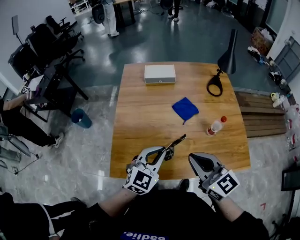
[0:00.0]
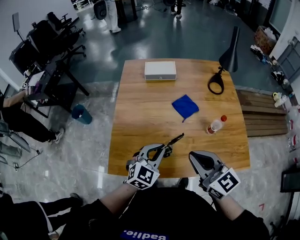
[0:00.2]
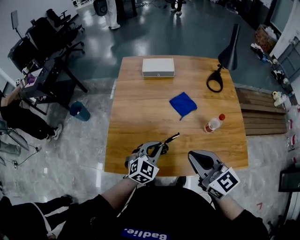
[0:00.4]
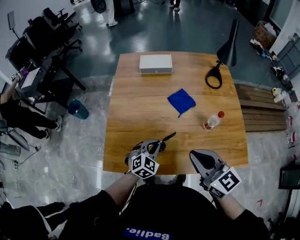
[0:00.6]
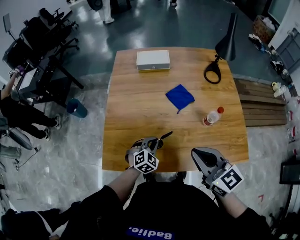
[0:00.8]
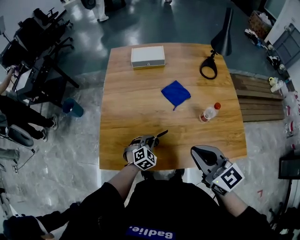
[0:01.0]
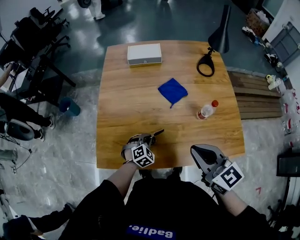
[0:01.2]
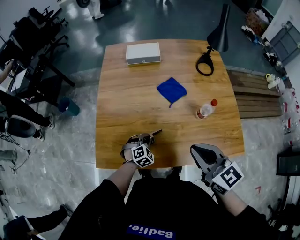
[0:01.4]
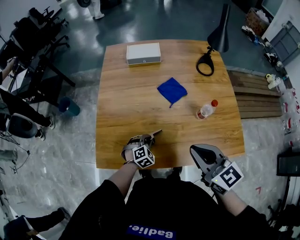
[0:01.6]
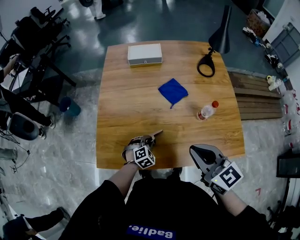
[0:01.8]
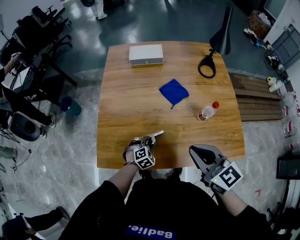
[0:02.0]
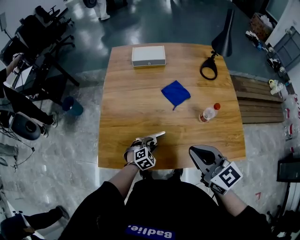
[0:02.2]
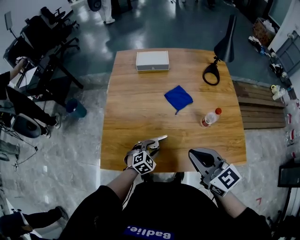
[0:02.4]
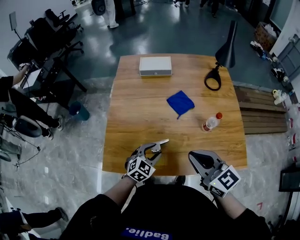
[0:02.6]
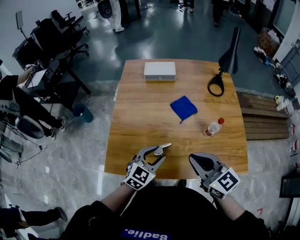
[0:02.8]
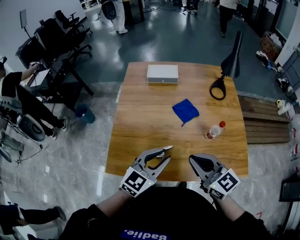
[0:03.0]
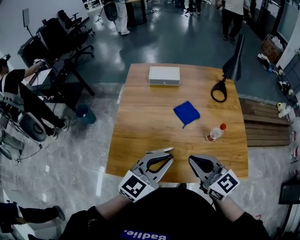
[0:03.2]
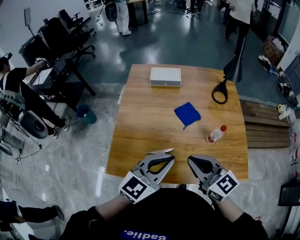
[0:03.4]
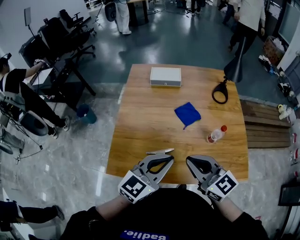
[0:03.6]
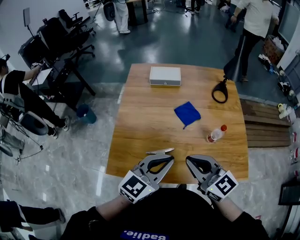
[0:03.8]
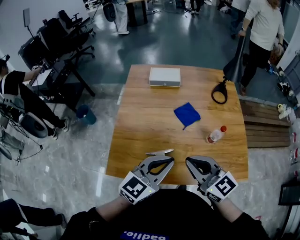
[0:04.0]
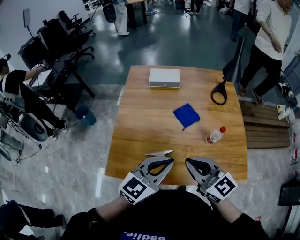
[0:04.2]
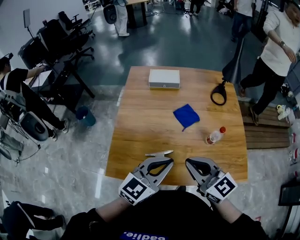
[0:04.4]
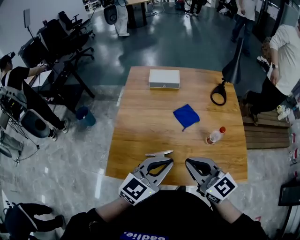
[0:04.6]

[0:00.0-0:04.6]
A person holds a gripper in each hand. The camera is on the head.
0:00.0 to 0:01.6: The right gripper travels to the right by some 5 cm, while the left gripper shifts approximately 30 cm downward, and tips its fingers downward by some 40 degrees.
0:01.6 to 0:03.0: The left gripper shifts some 30 cm upward, tilts its fingers roughly 40 degrees upward, and opens its fingers.
0:03.0 to 0:04.6: The left gripper closes up.

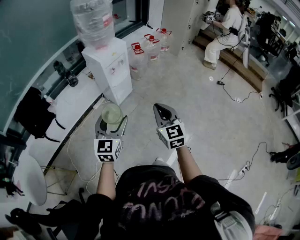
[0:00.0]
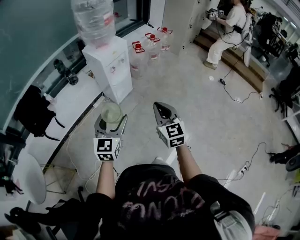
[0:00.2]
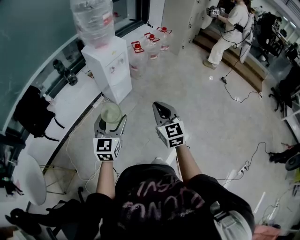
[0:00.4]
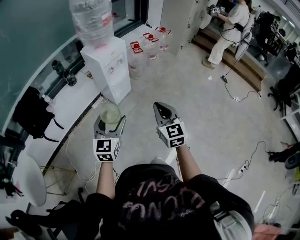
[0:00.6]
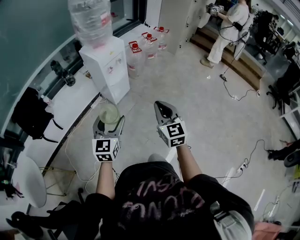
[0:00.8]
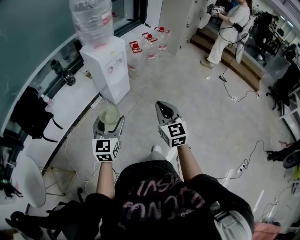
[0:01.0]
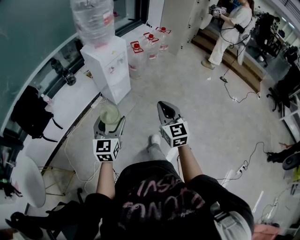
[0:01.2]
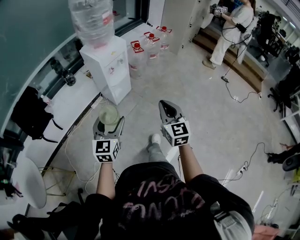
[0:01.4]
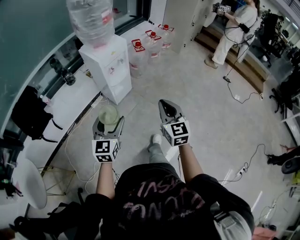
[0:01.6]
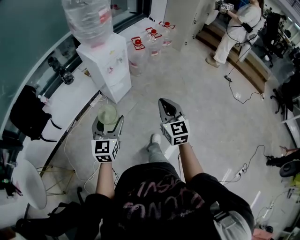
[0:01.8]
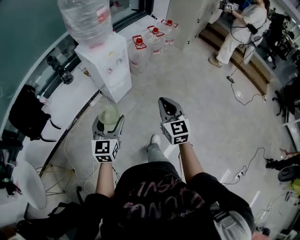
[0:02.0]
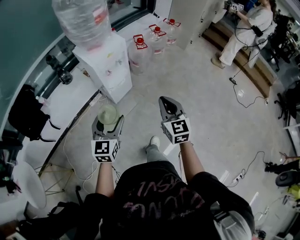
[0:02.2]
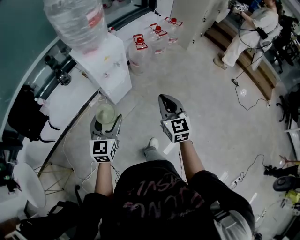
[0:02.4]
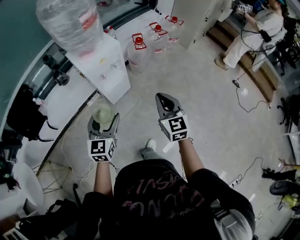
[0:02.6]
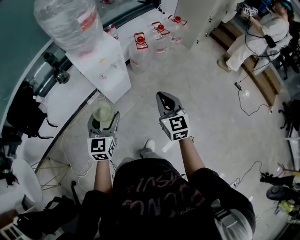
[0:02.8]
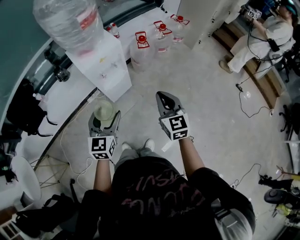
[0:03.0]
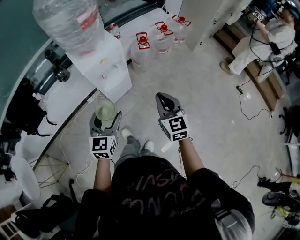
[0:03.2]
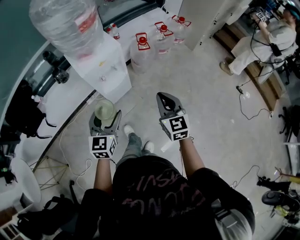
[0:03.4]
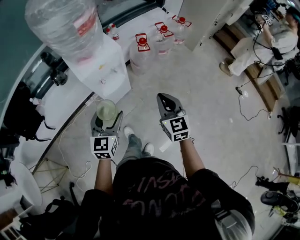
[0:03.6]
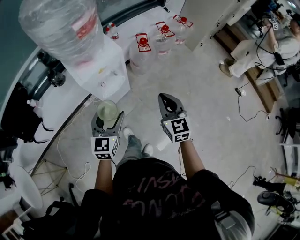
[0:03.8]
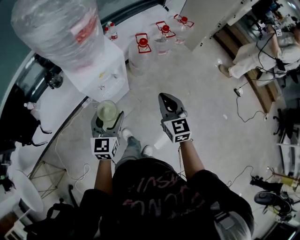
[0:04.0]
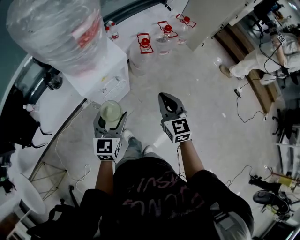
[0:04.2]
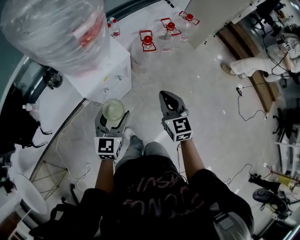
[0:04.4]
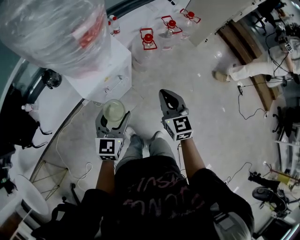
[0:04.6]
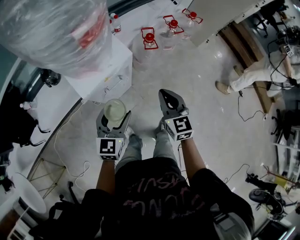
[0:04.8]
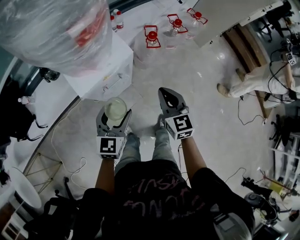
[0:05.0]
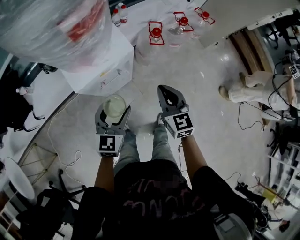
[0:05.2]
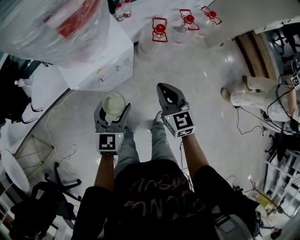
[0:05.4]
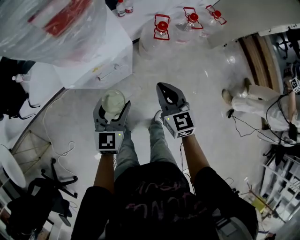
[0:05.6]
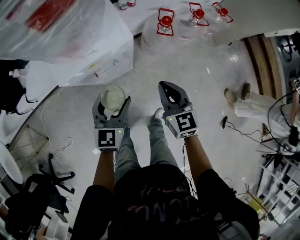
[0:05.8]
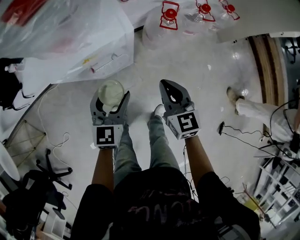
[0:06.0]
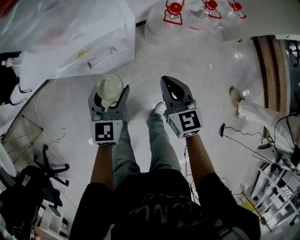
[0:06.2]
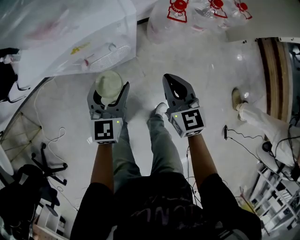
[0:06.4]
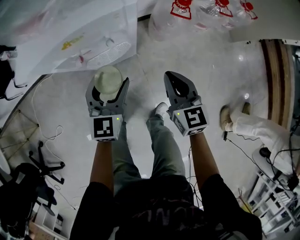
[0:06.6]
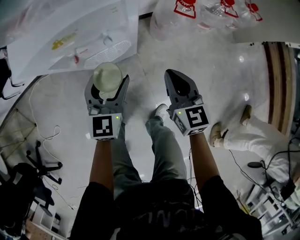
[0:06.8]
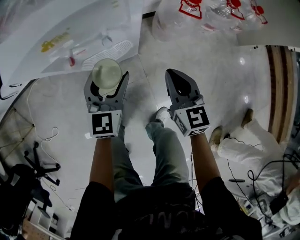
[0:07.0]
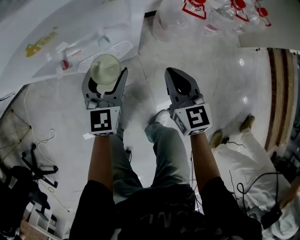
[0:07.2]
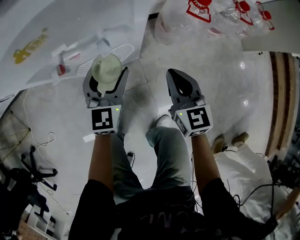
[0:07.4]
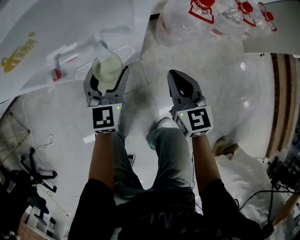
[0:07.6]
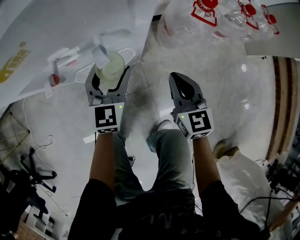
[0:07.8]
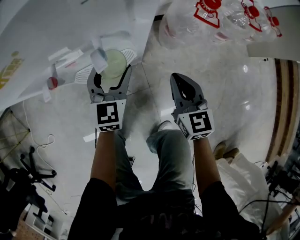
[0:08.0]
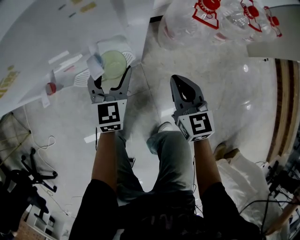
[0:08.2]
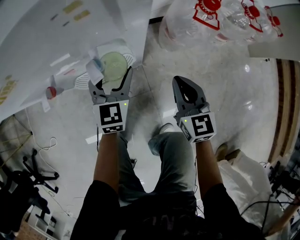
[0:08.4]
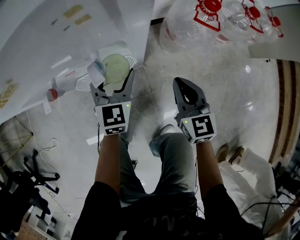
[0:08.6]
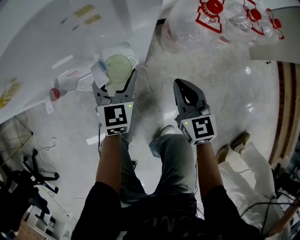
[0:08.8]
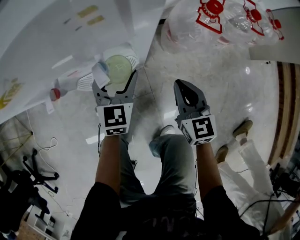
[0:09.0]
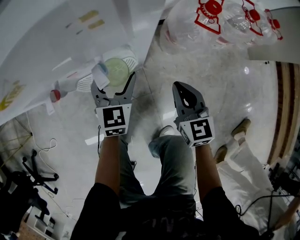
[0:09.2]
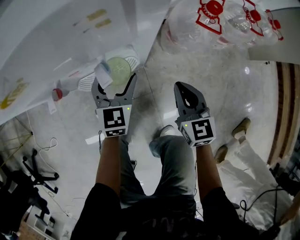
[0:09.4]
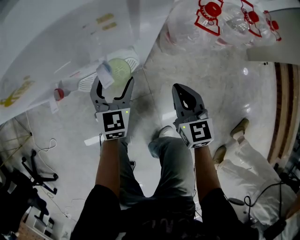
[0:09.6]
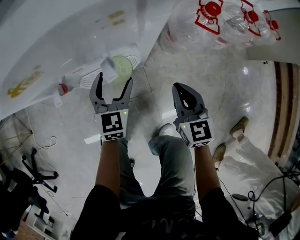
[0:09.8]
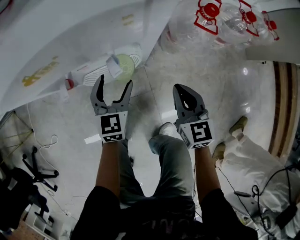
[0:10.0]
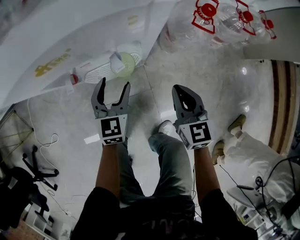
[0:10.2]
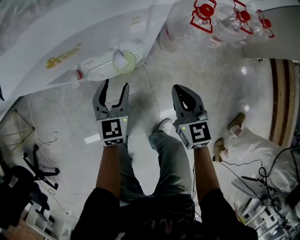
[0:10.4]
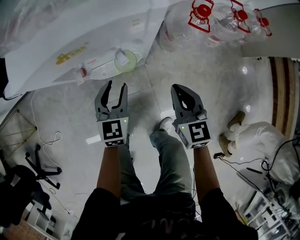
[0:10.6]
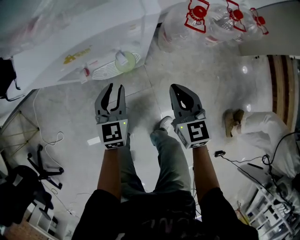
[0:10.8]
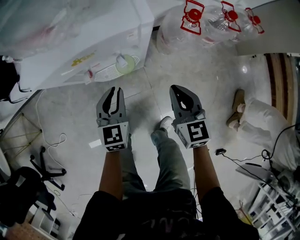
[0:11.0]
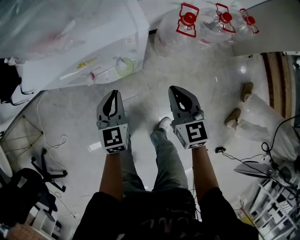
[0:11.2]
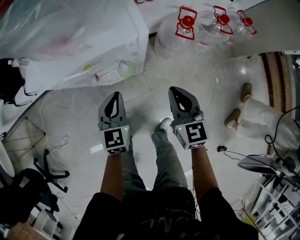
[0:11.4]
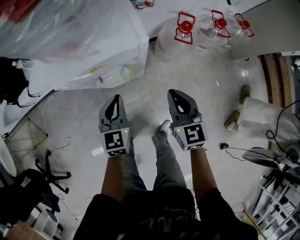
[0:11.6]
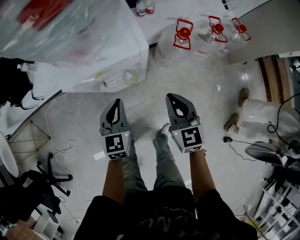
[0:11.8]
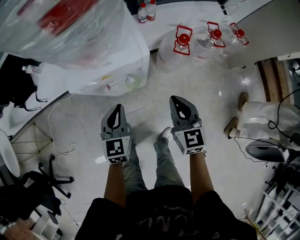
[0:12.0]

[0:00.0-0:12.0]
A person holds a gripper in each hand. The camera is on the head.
0:00.0 to 0:01.6: Both grippers move forward, approximately 10 cm.
0:01.6 to 0:03.0: The right gripper travels forward by about 25 cm. Meanwhile the left gripper travels forward and to the right by approximately 25 cm.
0:03.0 to 0:04.4: The grippers both shift forward by roughly 20 cm.
0:04.4 to 0:06.0: Both grippers move downward and forward, some 15 cm.
0:06.0 to 0:07.6: The right gripper goes some 25 cm downward. Meanwhile the left gripper is displaced downward and forward by some 25 cm.
0:07.6 to 0:09.0: The left gripper moves about 5 cm.
0:09.0 to 0:10.4: The right gripper heads upward, covering about 10 cm. Meanwhile the left gripper travels backward and upward by about 10 cm.
0:10.4 to 0:12.0: The two grippers go roughly 20 cm upward. The left gripper closes its fingers.

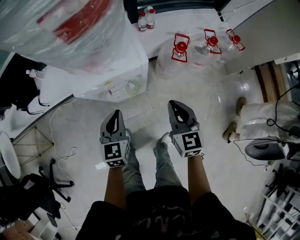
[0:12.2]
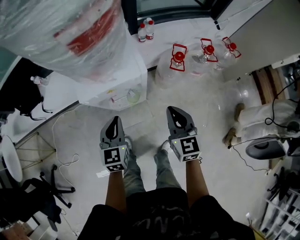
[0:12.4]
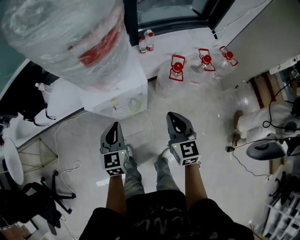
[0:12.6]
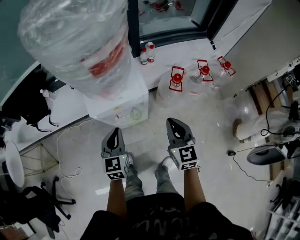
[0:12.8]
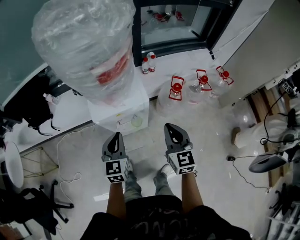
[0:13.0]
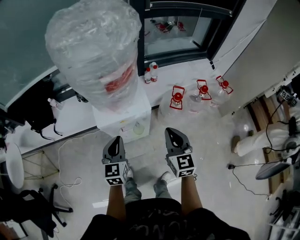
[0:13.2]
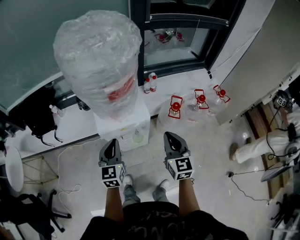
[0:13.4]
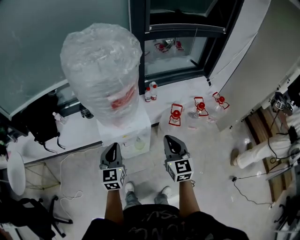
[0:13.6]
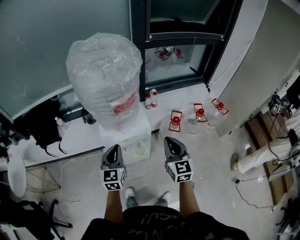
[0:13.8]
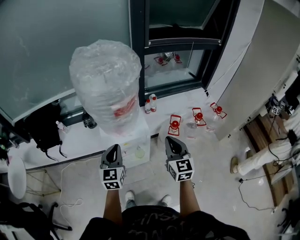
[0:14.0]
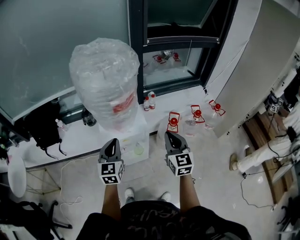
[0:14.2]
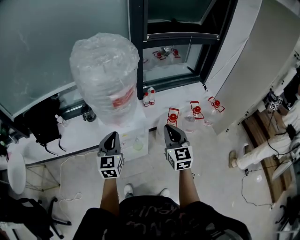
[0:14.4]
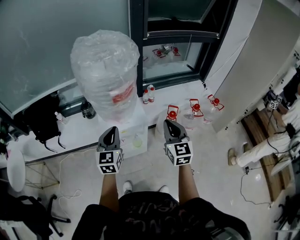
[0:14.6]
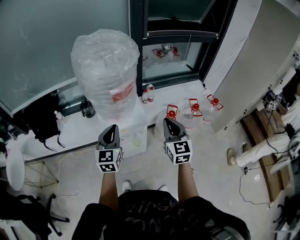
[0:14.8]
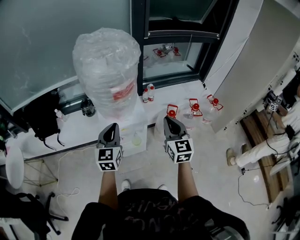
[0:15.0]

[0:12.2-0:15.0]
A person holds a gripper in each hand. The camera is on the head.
0:12.2 to 0:13.6: The grippers both shift upward by roughly 20 cm.
0:13.6 to 0:15.0: Both grippers move upward, about 10 cm.

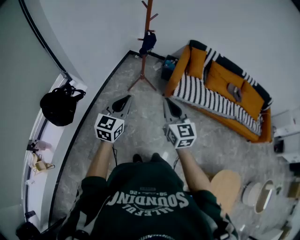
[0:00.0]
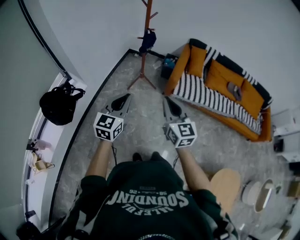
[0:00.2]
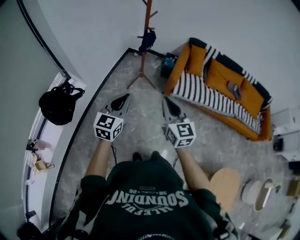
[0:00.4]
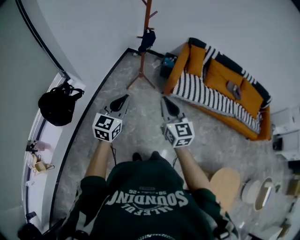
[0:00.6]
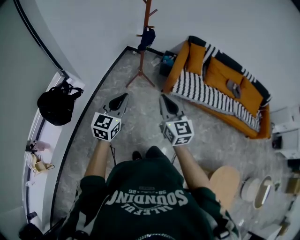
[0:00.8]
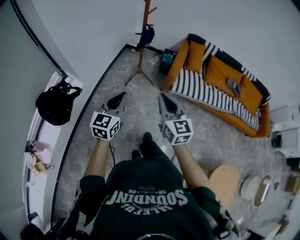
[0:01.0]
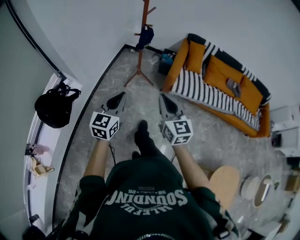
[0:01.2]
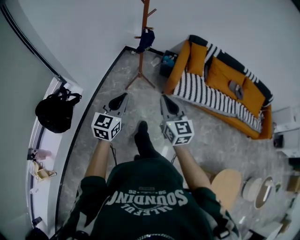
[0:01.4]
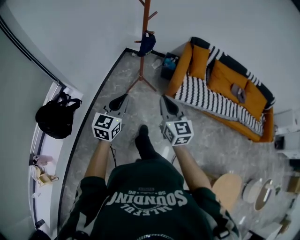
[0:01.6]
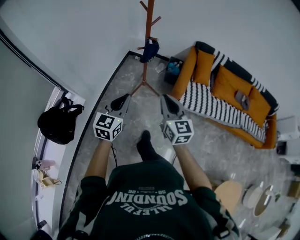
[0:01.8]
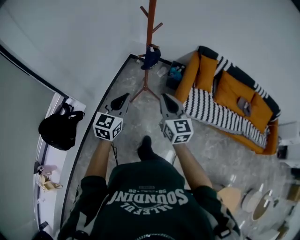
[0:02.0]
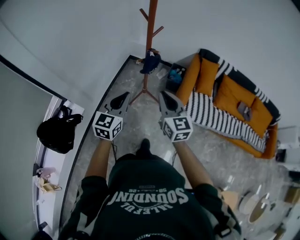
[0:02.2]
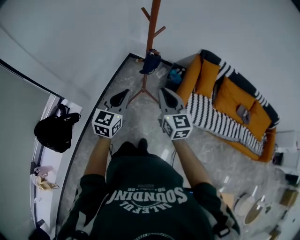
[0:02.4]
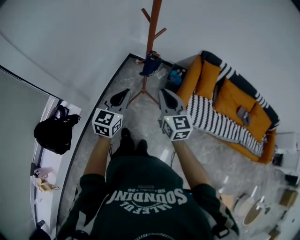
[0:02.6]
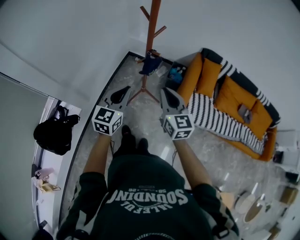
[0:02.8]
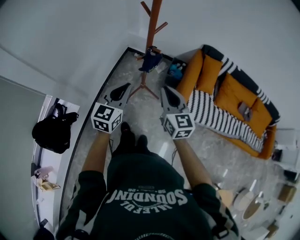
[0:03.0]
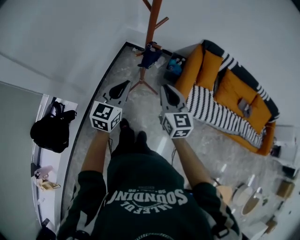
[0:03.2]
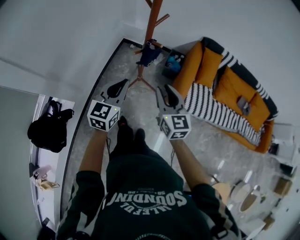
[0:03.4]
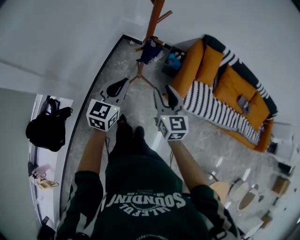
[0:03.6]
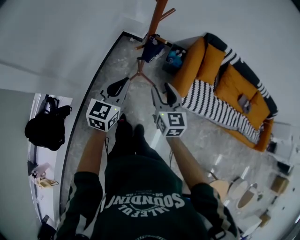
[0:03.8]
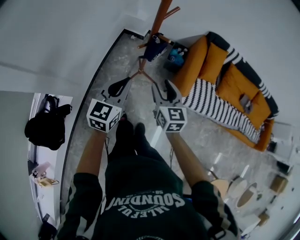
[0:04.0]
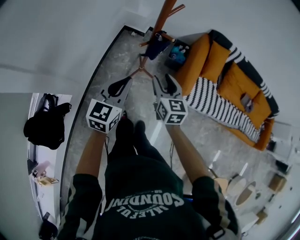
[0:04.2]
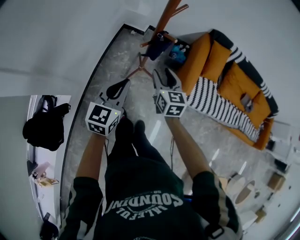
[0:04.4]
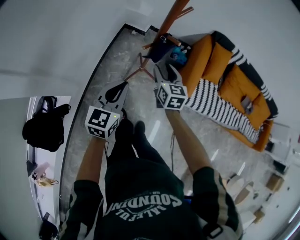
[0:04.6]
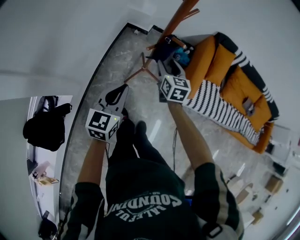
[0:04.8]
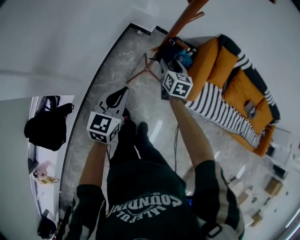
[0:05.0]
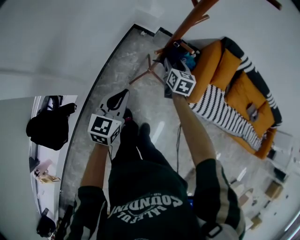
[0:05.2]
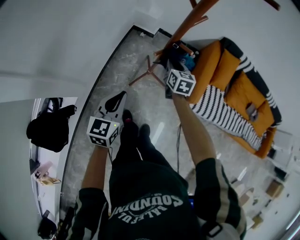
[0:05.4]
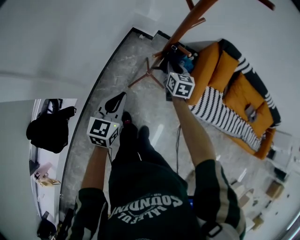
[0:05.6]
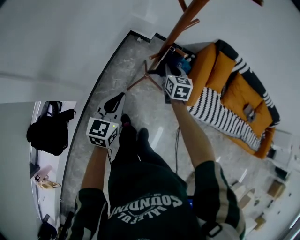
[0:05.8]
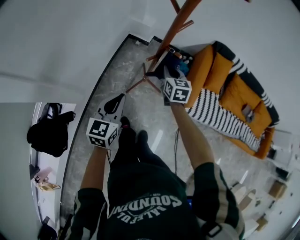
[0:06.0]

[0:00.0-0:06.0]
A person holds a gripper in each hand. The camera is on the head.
0:00.0 to 0:01.6: The two grippers go about 15 cm forward.
0:01.6 to 0:03.0: The grippers both shift forward by approximately 25 cm.
0:03.0 to 0:04.4: The left gripper heads downward, covering about 10 cm, while the right gripper moves downward, forward and to the left, approximately 20 cm, and opens.
0:04.4 to 0:06.0: The right gripper is displaced forward by some 10 cm, and closes its fingers.
